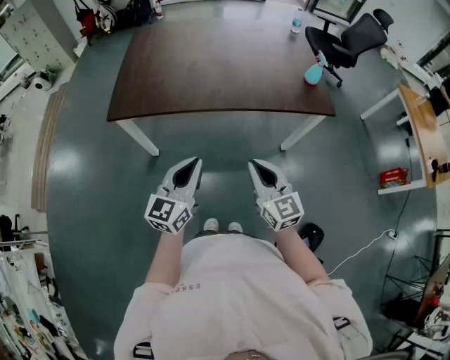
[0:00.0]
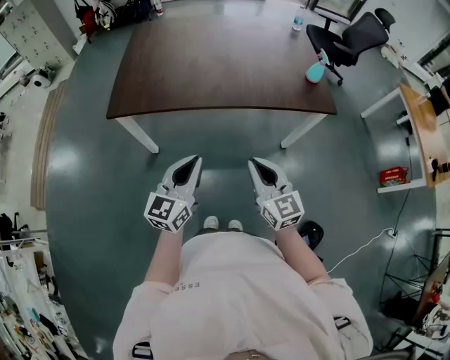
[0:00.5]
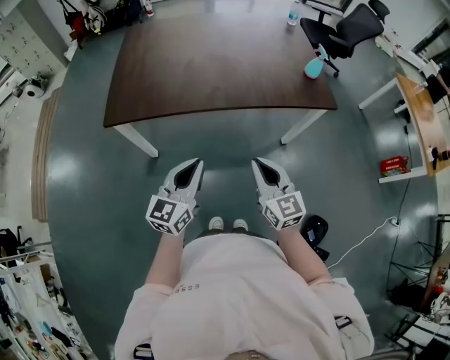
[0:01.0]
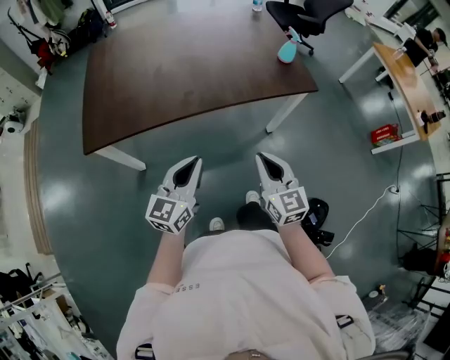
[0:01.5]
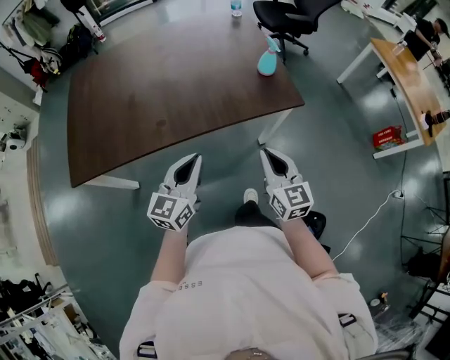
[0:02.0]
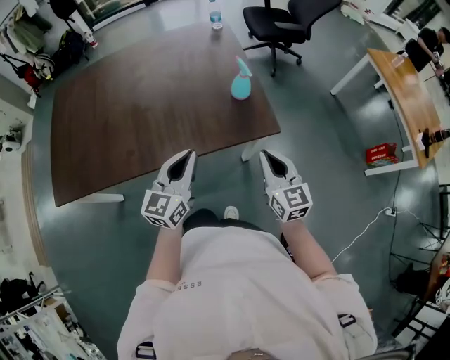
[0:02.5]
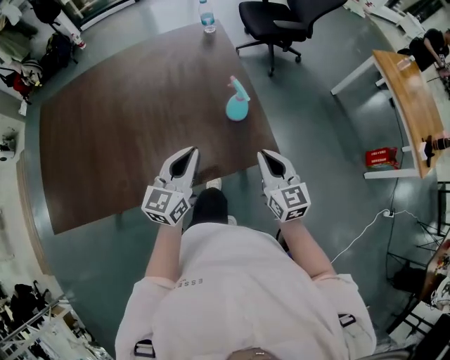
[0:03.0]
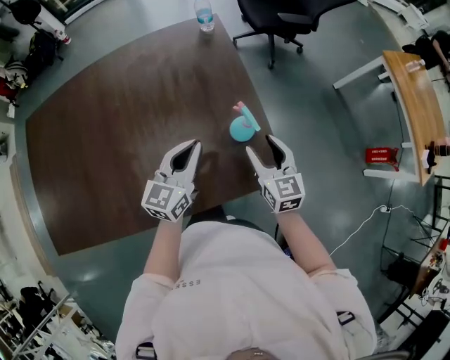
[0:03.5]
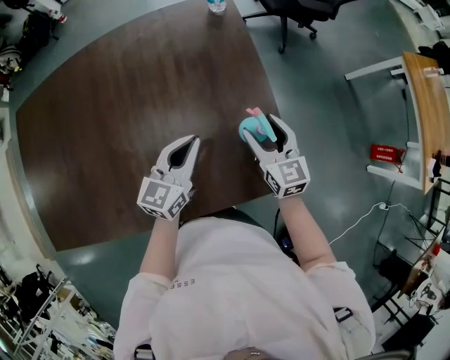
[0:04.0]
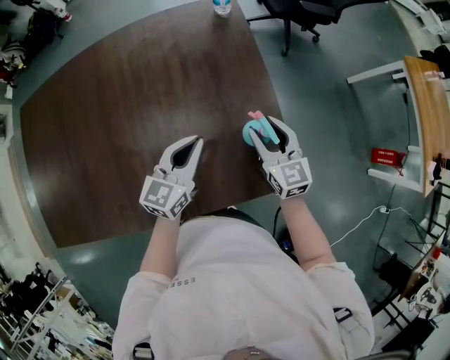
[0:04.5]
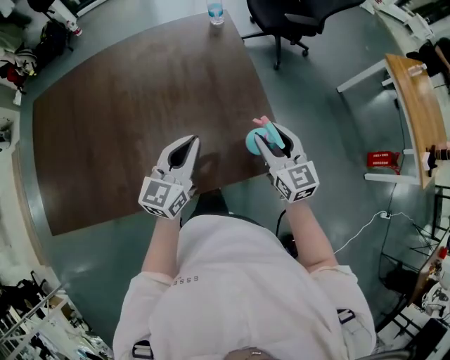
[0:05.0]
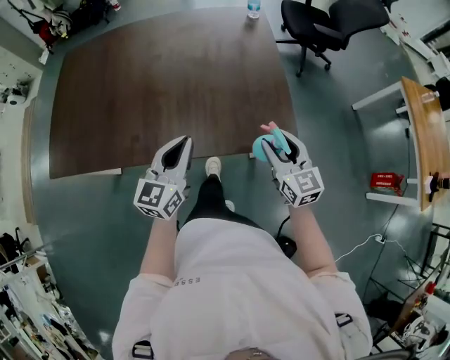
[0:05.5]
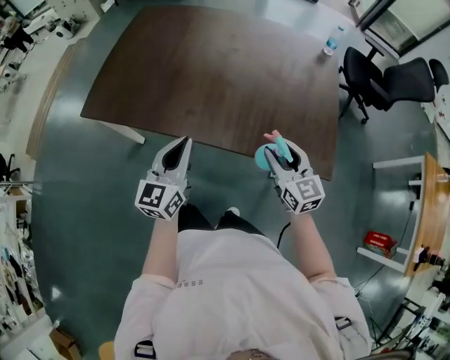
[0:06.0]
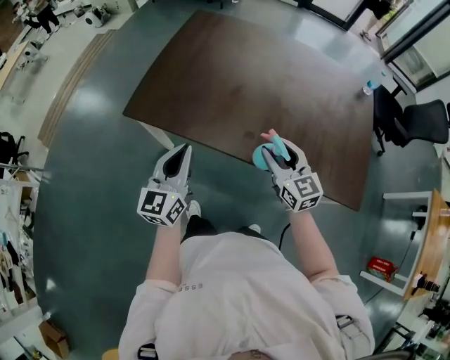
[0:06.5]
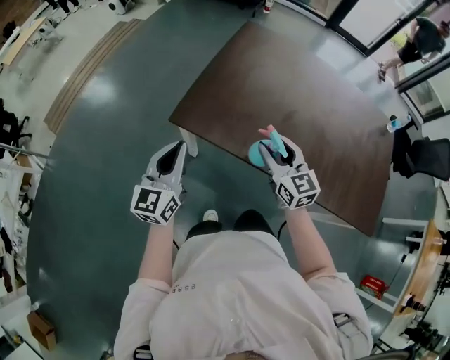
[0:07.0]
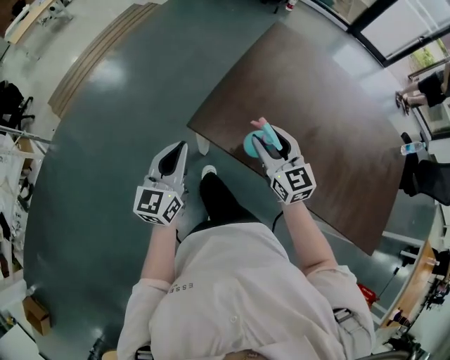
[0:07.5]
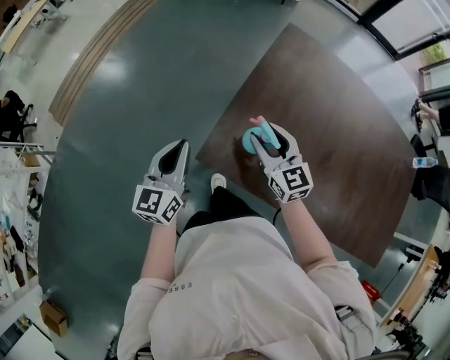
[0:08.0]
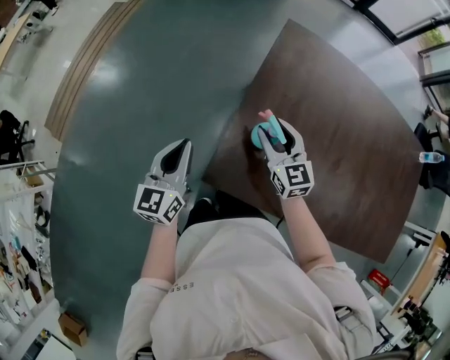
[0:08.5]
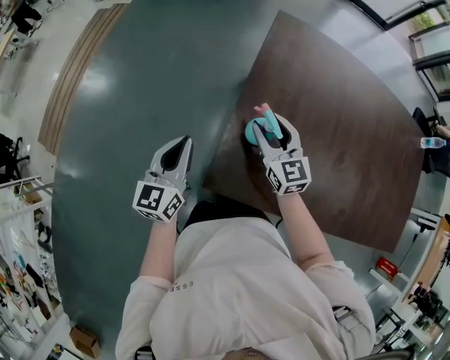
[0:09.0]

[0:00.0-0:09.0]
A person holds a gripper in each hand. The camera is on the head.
0.0 to 2.0 s: The right gripper goes about 25 cm to the right and forward, and rotates approximately 20 degrees; the left gripper is displaced forward and to the right by some 20 cm.
2.0 to 4.5 s: Both grippers travel together forward, about 40 cm. The right gripper opens up.
4.5 to 7.0 s: Both grippers are carried approximately 70 cm. The left gripper swivels about 60 degrees, while the right gripper changes its angle by some 40 degrees.
7.0 to 9.0 s: The left gripper travels forward by roughly 30 cm; the right gripper moves forward and to the left, some 35 cm.

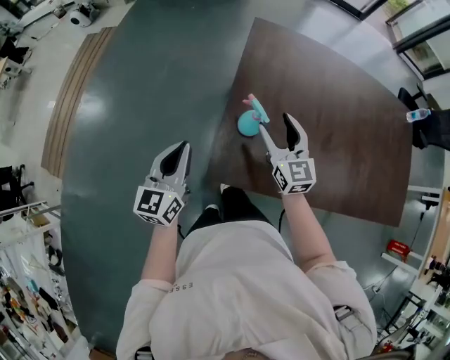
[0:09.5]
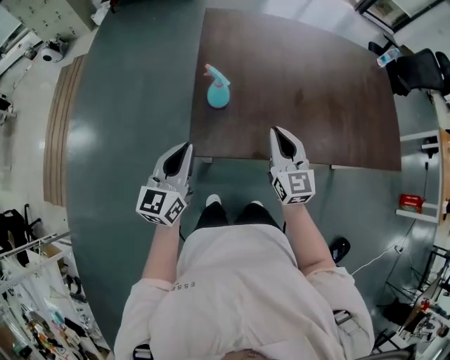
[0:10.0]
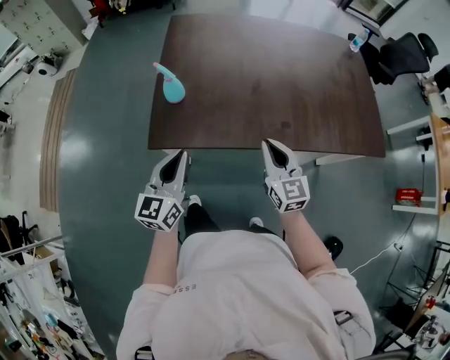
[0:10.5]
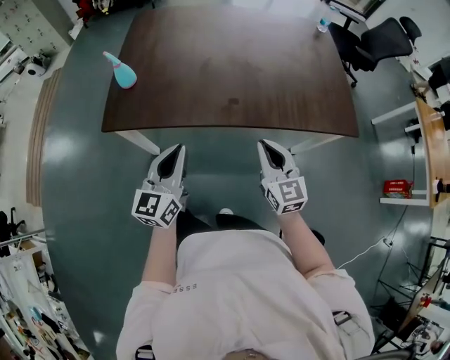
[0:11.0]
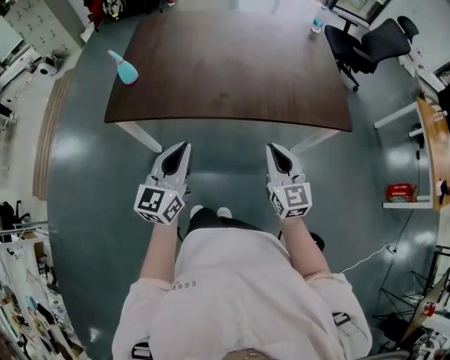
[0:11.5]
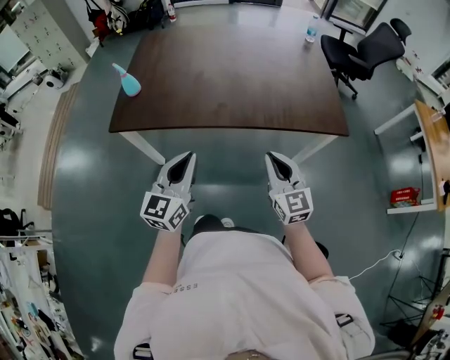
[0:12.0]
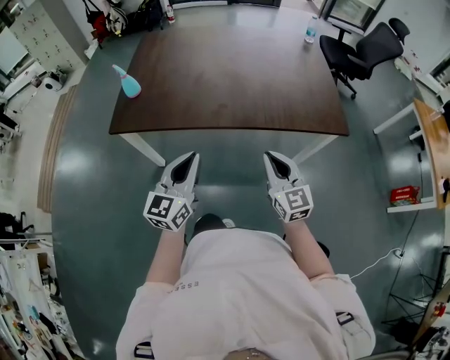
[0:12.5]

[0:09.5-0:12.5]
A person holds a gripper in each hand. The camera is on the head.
9.5 to 11.0 s: The two grippers travel together, to the right and backward, some 50 cm. The right gripper closes up.
11.0 to 12.5 s: The grippers both shift to the right and backward by roughly 10 cm.

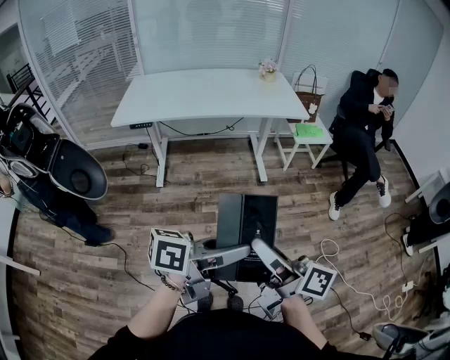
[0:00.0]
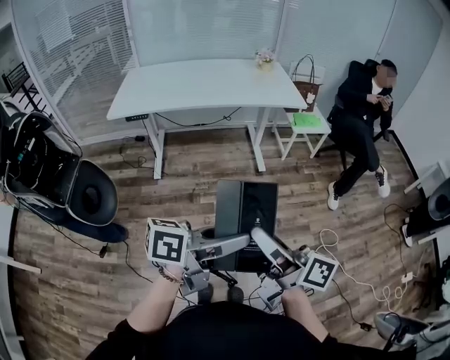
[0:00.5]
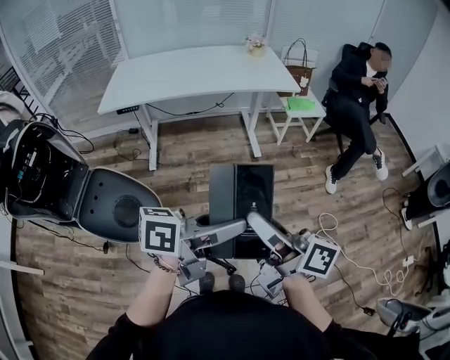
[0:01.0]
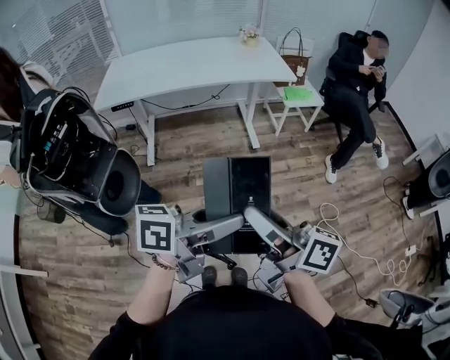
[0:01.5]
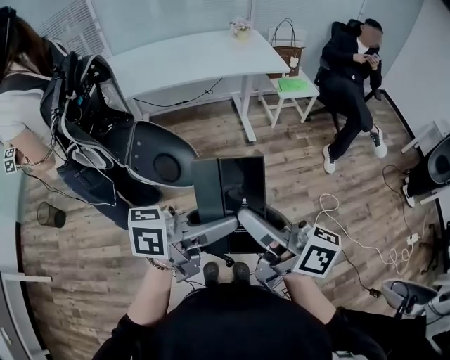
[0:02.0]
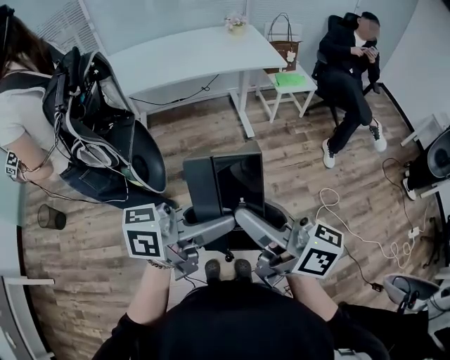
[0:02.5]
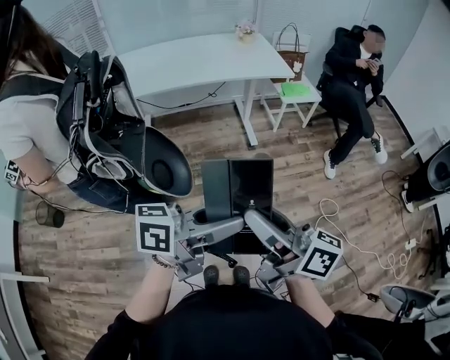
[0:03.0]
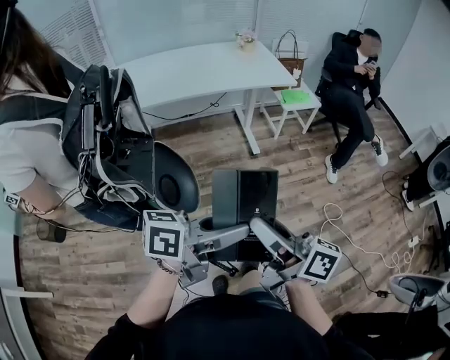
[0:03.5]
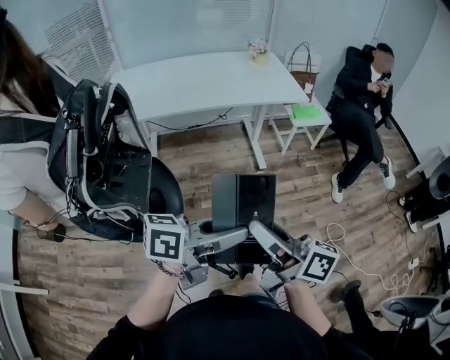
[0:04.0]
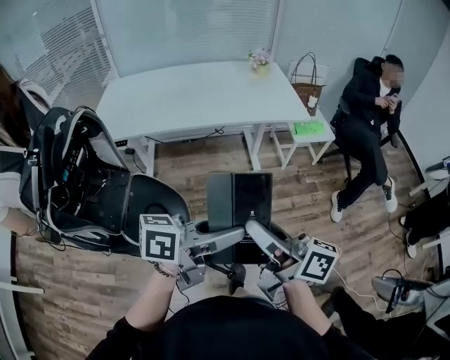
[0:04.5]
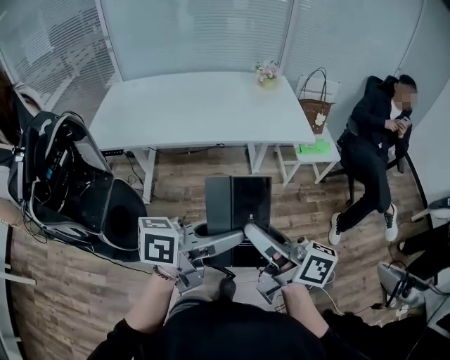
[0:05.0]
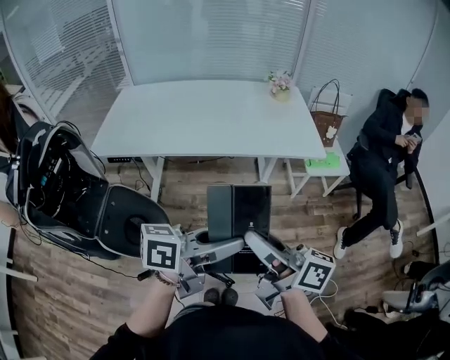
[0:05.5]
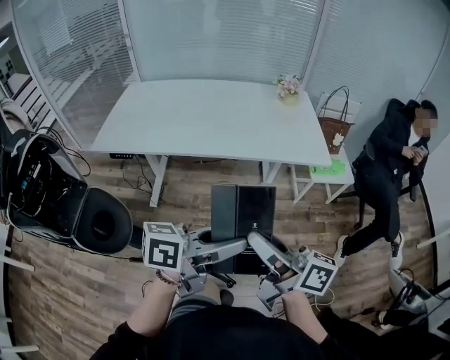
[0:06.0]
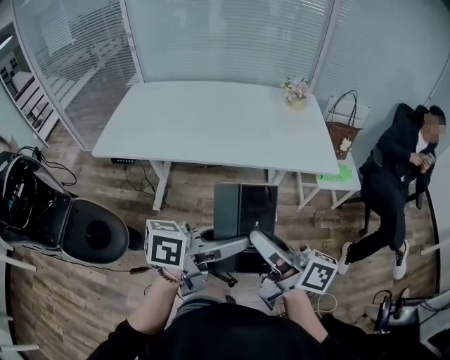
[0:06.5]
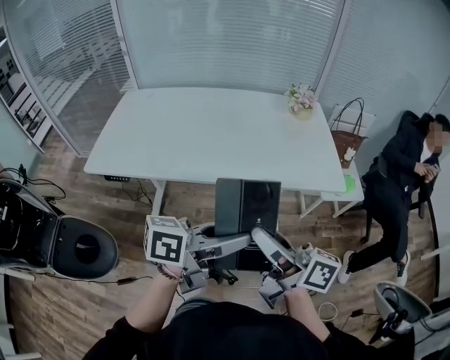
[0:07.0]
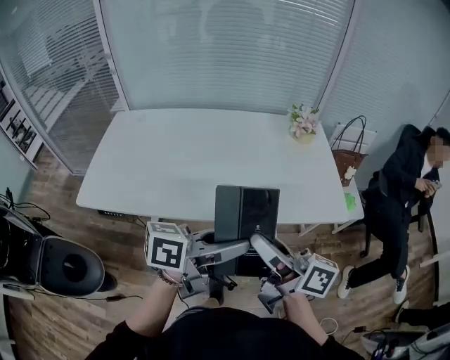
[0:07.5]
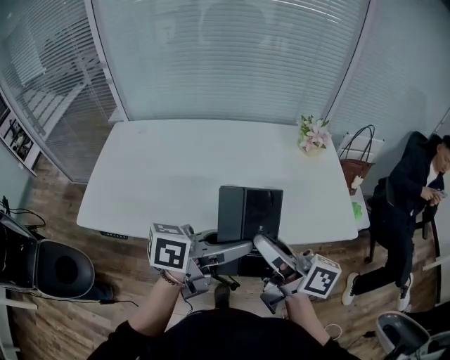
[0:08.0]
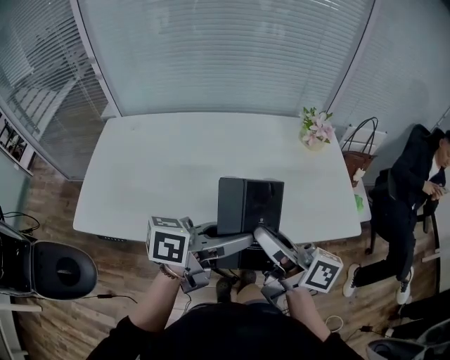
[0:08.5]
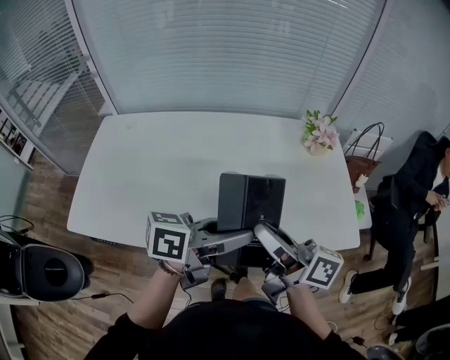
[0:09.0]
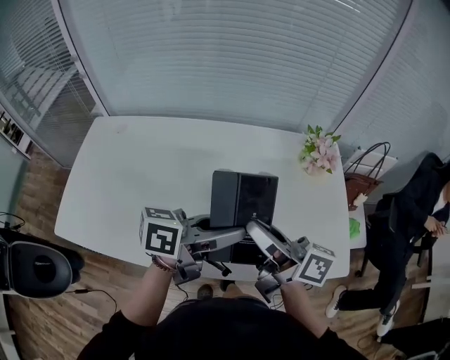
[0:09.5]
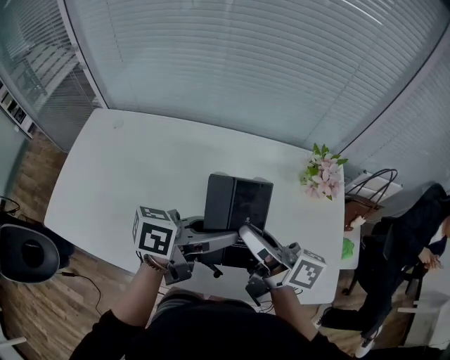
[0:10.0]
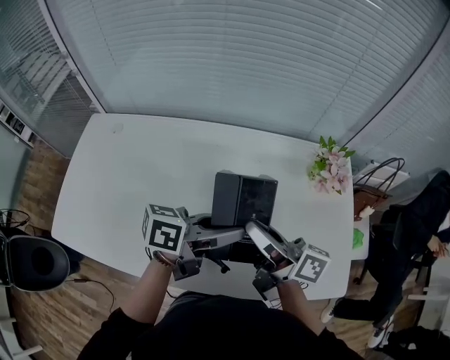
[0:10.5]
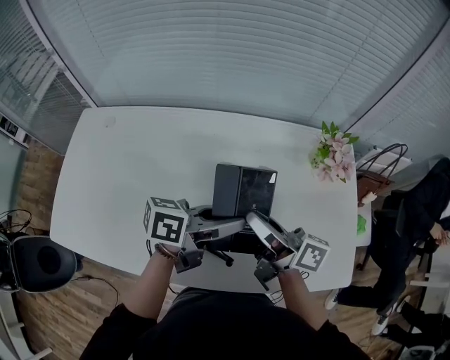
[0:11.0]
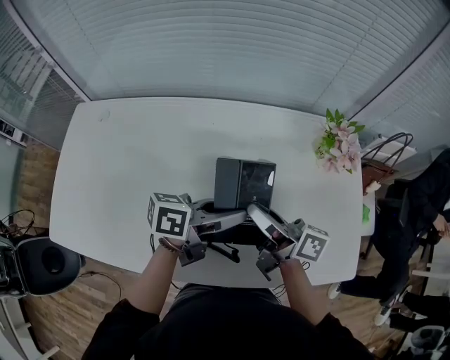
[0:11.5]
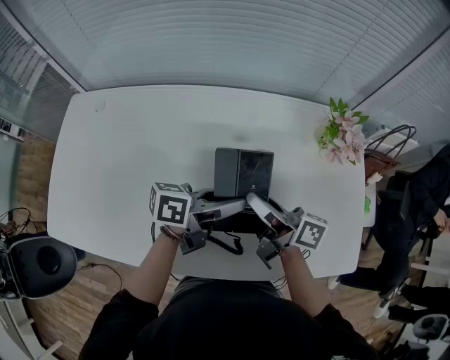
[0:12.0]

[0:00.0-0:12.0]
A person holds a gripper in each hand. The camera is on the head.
0.0 to 2.0 s: There are only small adjustments of the grippers.
2.0 to 4.0 s: The two grippers go about 15 cm forward and to the left.
4.0 to 6.0 s: The two grippers go some 25 cm forward.
6.0 to 8.0 s: Both grippers travel together forward and to the left, roughly 35 cm.
8.0 to 10.0 s: The two grippers go some 25 cm forward.
10.0 to 12.0 s: Both grippers travel together downward, roughly 10 cm.

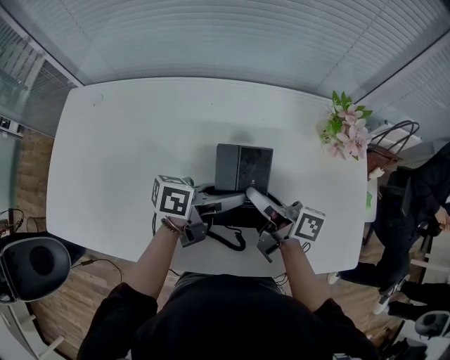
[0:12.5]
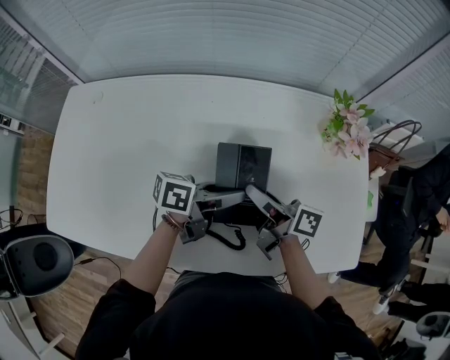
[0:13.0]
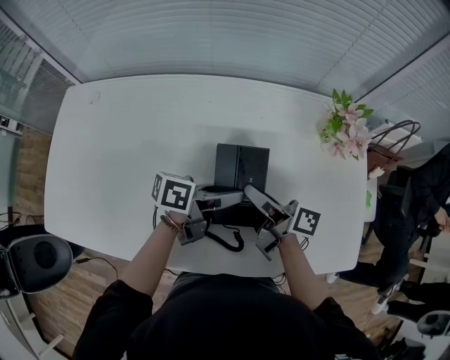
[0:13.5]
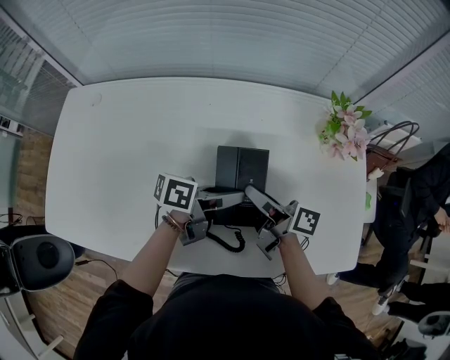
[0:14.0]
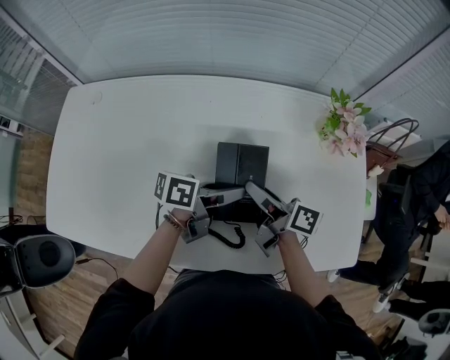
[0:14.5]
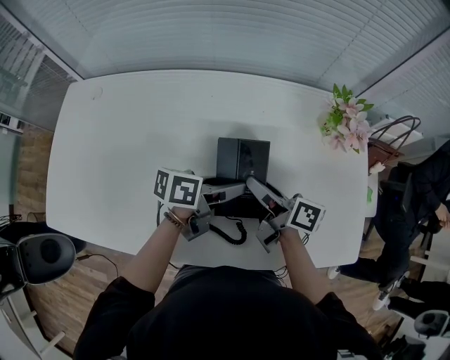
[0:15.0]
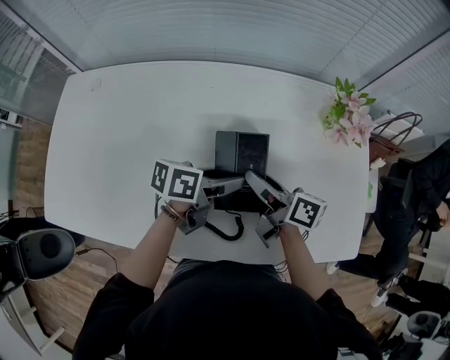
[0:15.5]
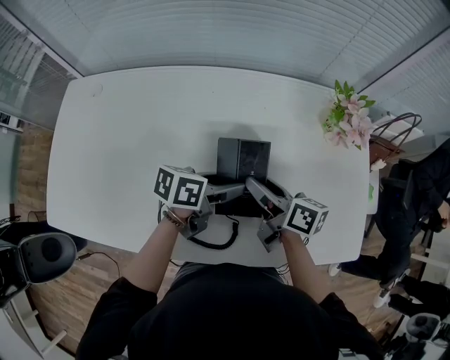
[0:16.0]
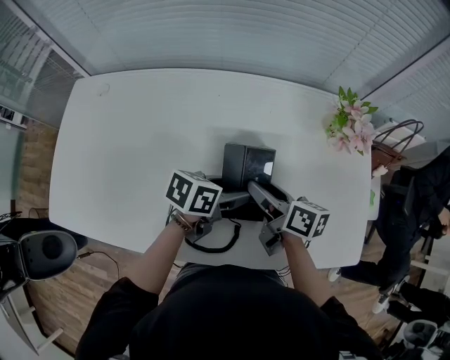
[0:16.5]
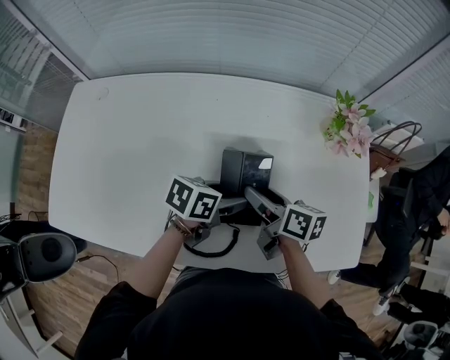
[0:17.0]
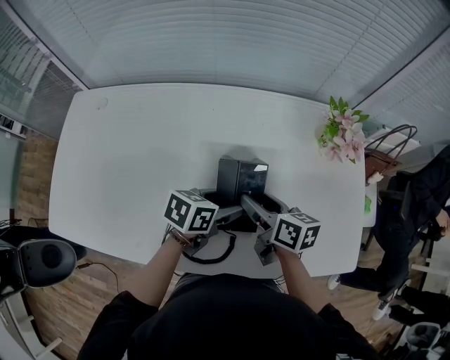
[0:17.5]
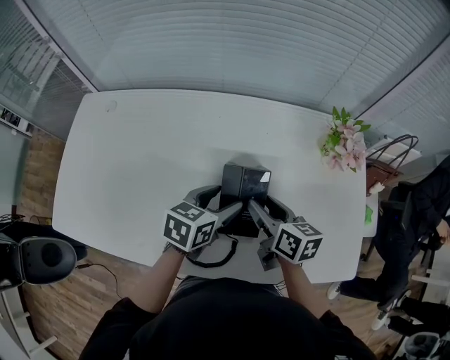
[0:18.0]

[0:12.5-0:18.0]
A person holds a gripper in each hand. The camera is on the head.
12.5 to 14.5 s: The grippers move only a little.
14.5 to 16.0 s: The grippers make only small movements.
16.0 to 18.0 s: The left gripper changes its angle by some 30 degrees.
